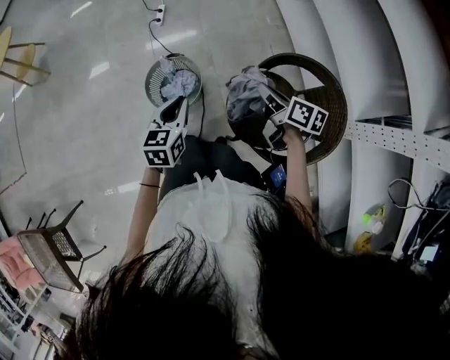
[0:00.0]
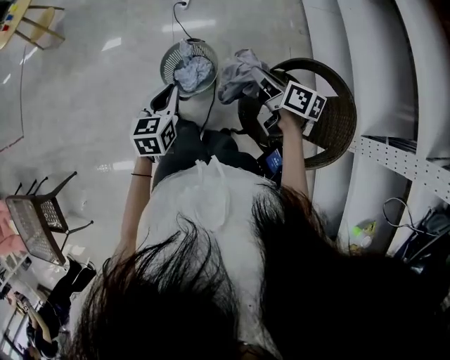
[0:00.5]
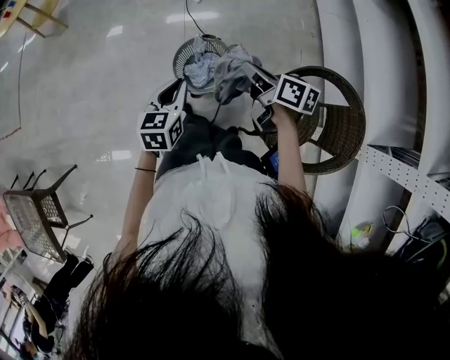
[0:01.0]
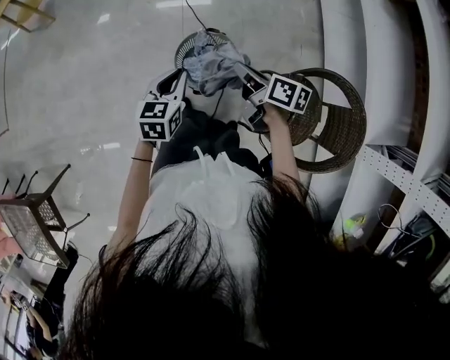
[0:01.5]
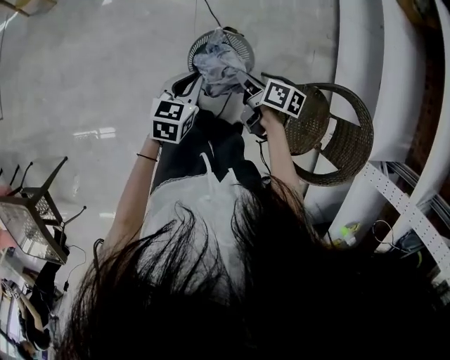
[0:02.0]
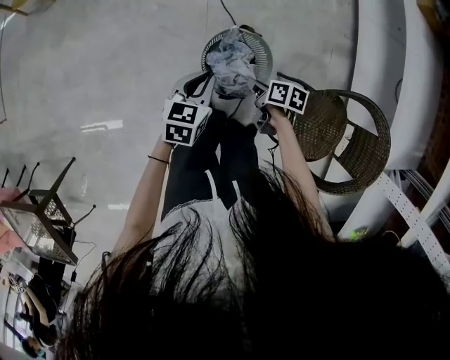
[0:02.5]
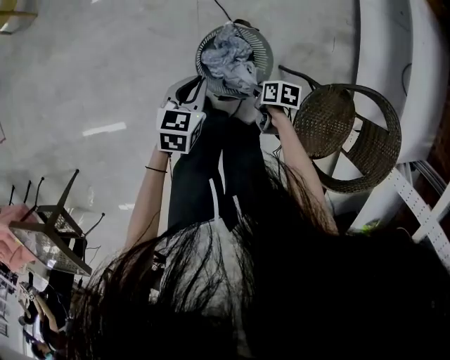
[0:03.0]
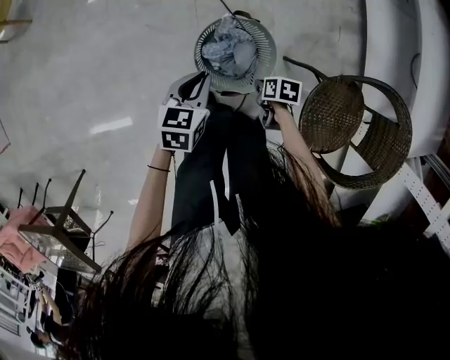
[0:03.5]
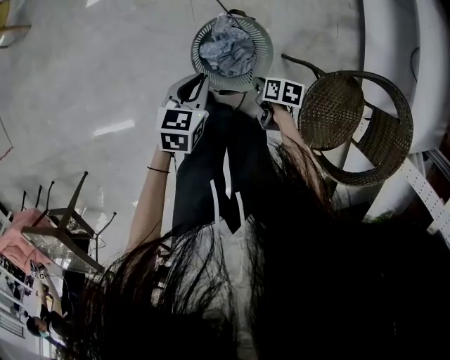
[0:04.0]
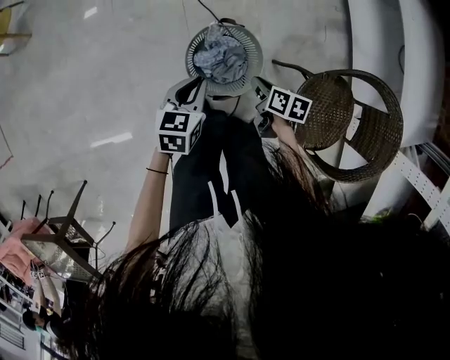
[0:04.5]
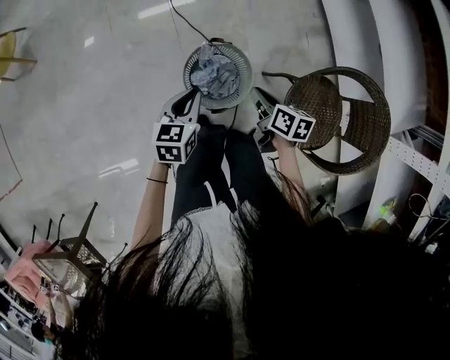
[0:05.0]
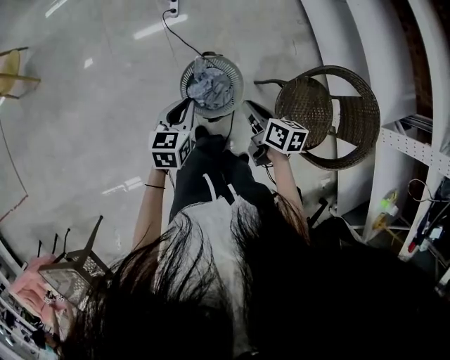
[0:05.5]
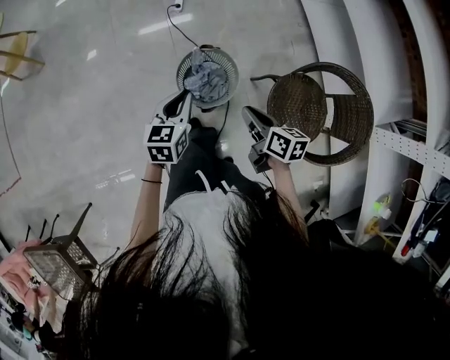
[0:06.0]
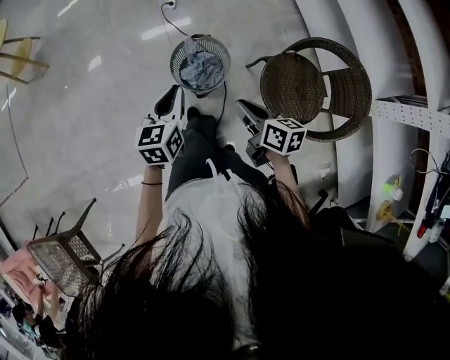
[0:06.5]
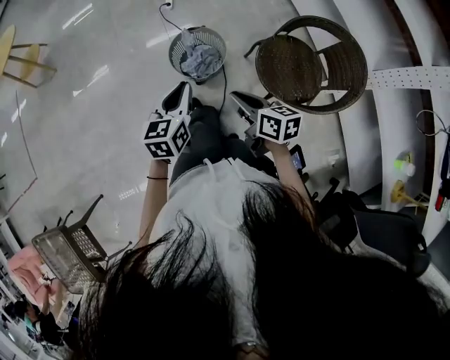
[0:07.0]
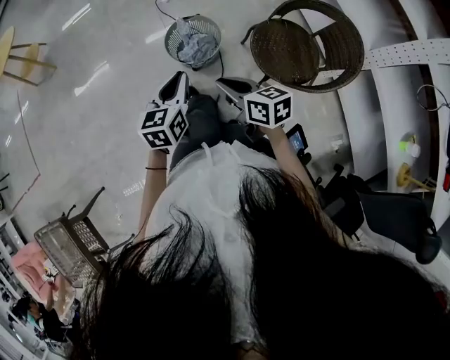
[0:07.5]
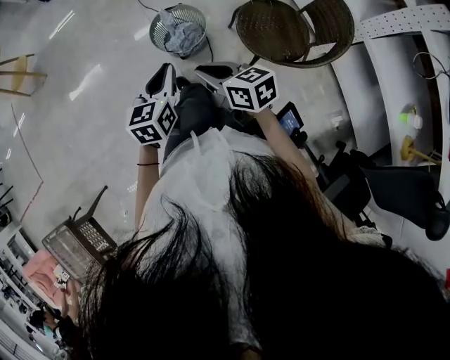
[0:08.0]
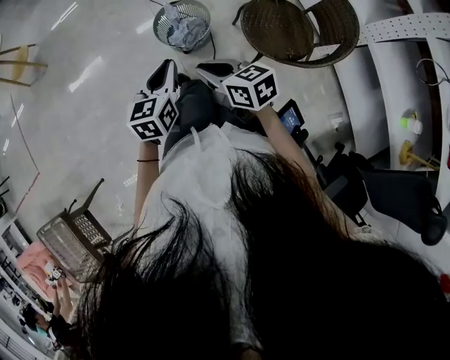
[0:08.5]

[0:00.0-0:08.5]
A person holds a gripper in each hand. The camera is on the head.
0:00.0 to 0:02.0: Both grippers travel together to the left, forward and downward, approximately 35 cm. The right gripper turns by approximately 20 degrees.
0:02.0 to 0:04.0: The left gripper goes approximately 15 cm downward. The right gripper travels downward by about 25 cm, and swivels about 30 degrees.
0:04.0 to 0:06.5: Both grippers move upward and backward, roughly 35 cm. The right gripper angles its fingers upward, by about 40 degrees.
0:06.5 to 0:08.5: The left gripper travels backward by about 20 cm. The right gripper moves backward and to the left, roughly 15 cm, and rotates some 20 degrees.

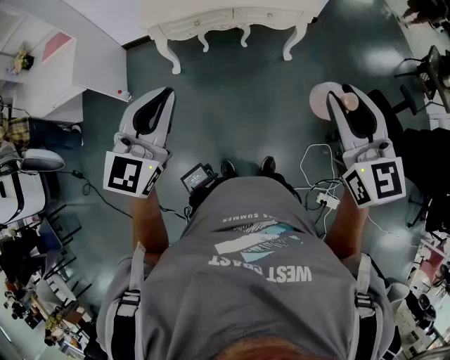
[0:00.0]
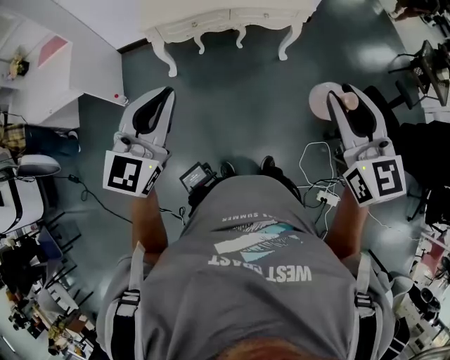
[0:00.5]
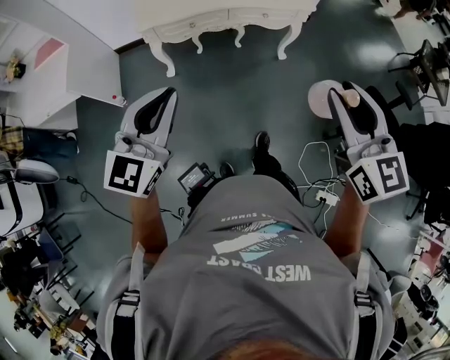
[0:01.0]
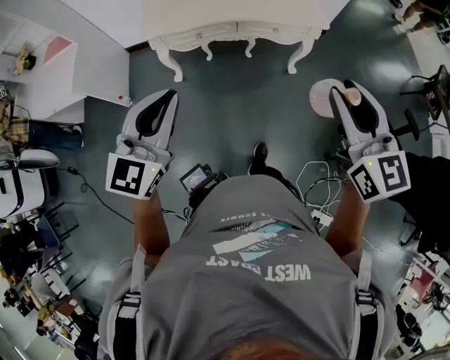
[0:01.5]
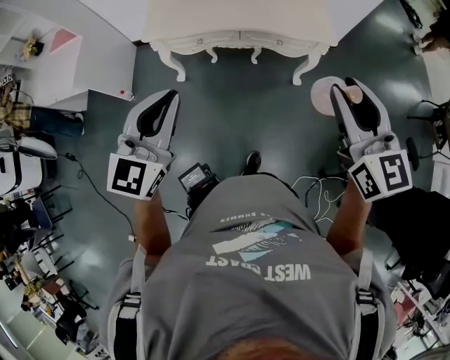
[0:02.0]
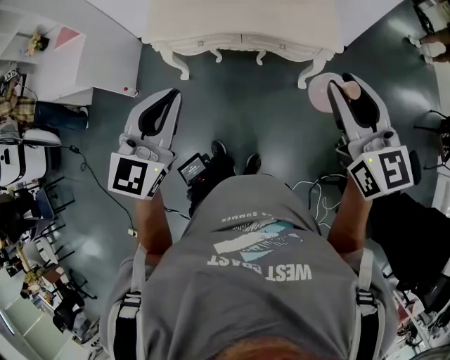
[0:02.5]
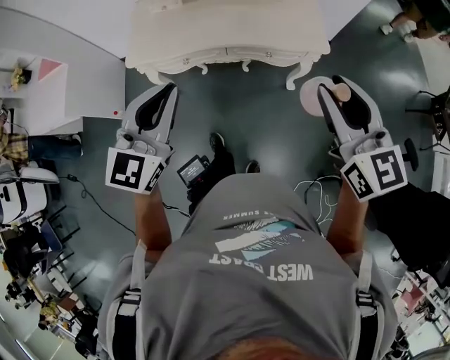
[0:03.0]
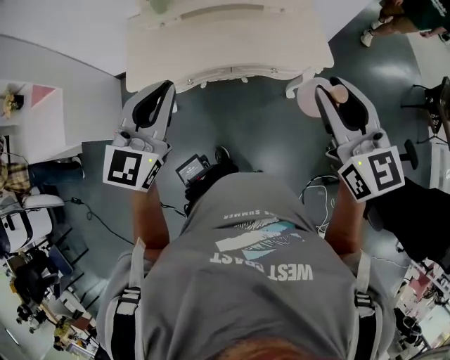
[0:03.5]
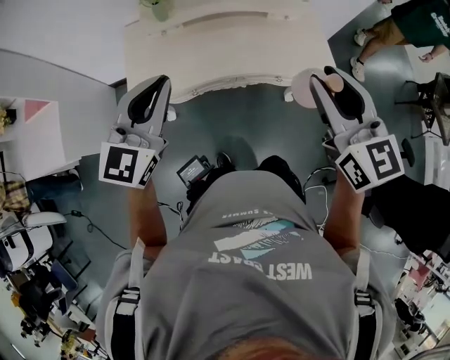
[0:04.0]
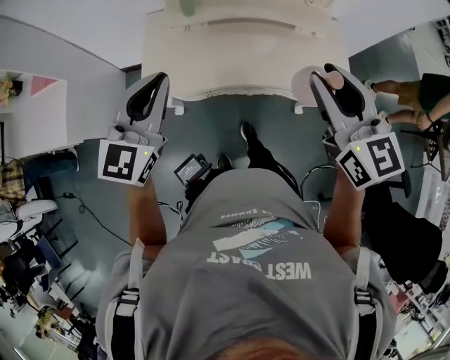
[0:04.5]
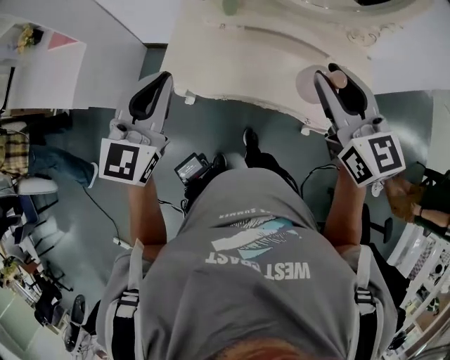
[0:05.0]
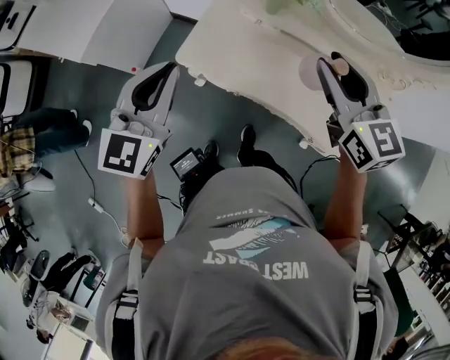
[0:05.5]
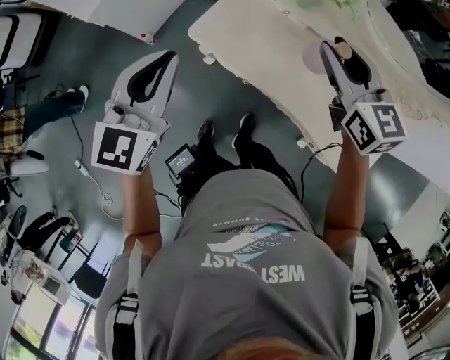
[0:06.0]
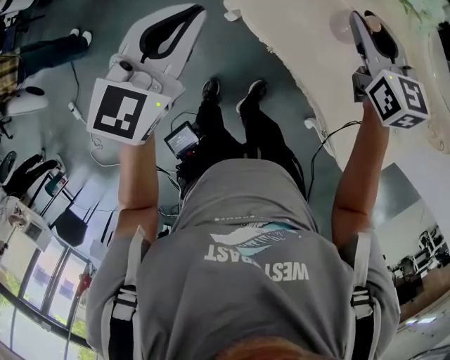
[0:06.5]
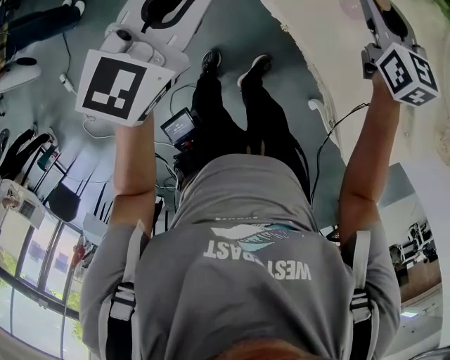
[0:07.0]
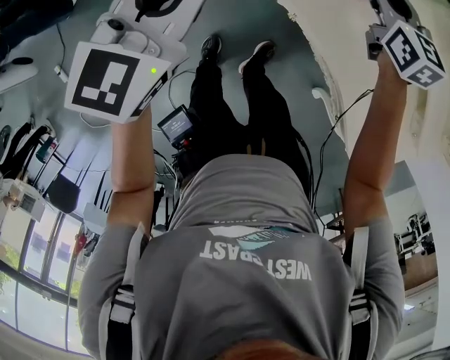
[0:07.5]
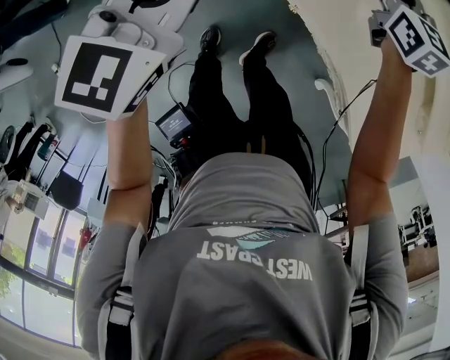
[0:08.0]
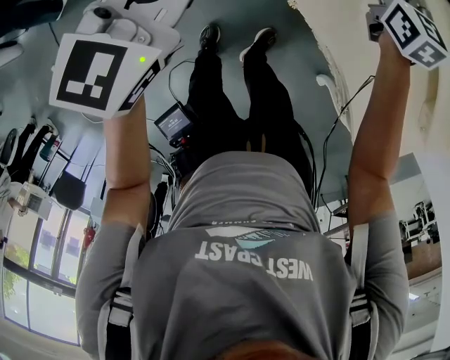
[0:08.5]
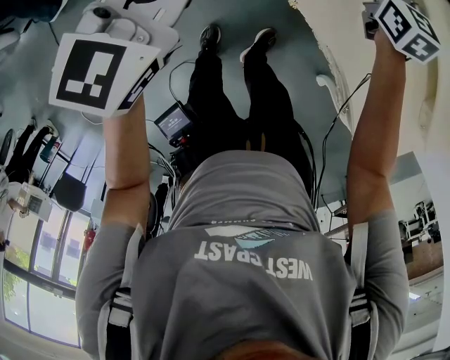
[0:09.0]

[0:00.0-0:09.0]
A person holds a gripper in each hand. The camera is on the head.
0:00.0 to 0:02.0: The left gripper is displaced forward and to the right by about 20 cm; the right gripper travels forward by approximately 25 cm.
0:02.0 to 0:04.5: Both grippers move forward and to the left, roughly 40 cm.
0:04.5 to 0:07.0: The right gripper moves roughly 50 cm, and turns by some 50 degrees. Meanwhile the left gripper travels downward by about 20 cm, and rotates roughly 40 degrees.
0:07.0 to 0:09.0: The right gripper heads downward, covering about 10 cm; the left gripper is displaced downward by roughly 5 cm.

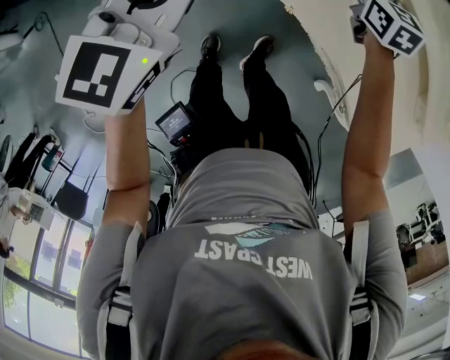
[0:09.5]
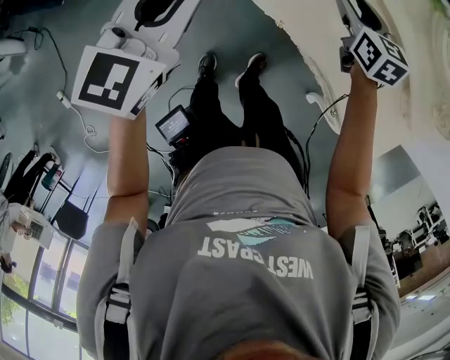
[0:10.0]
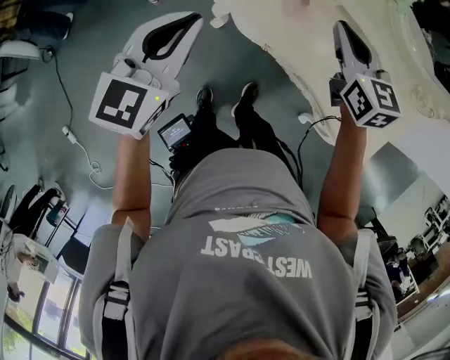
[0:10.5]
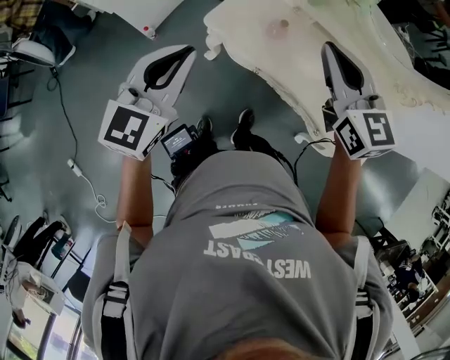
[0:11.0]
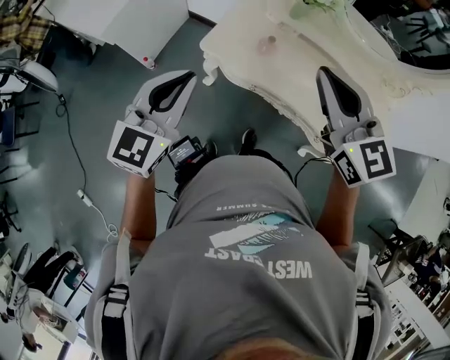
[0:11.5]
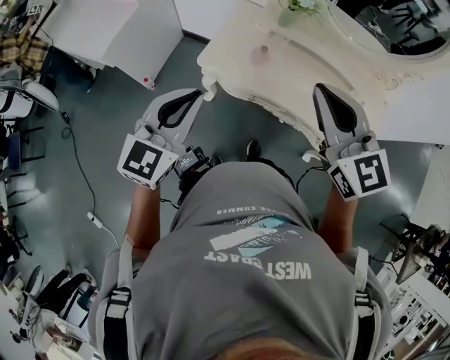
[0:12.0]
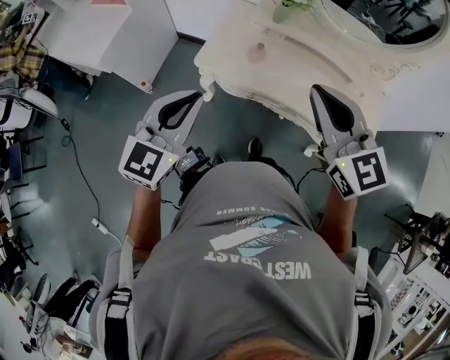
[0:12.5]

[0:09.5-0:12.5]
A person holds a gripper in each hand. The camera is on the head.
0:09.5 to 0:11.0: The left gripper shifts some 20 cm upward and backward. The right gripper moves upward and backward, some 40 cm, rotates some 20 degrees, and closes up.
0:11.0 to 0:12.5: The right gripper heads backward and upward, covering roughly 15 cm. Meanwhile the left gripper moves backward, roughly 5 cm.

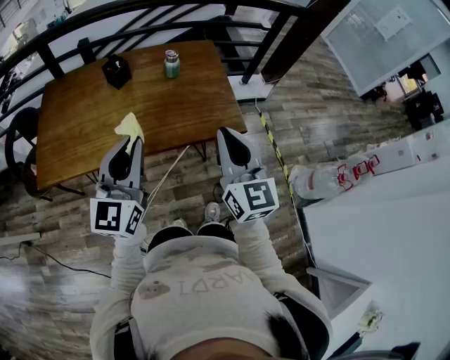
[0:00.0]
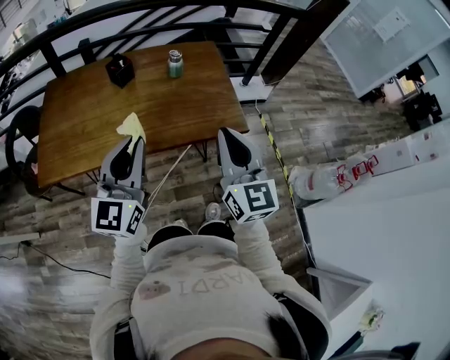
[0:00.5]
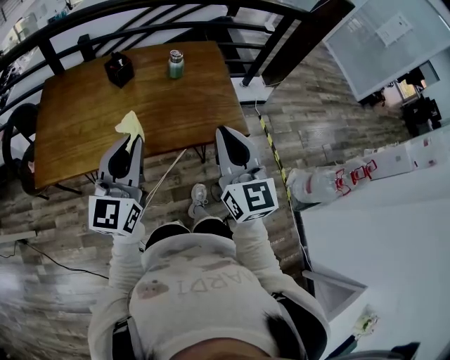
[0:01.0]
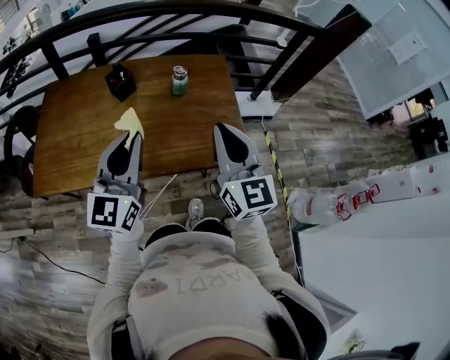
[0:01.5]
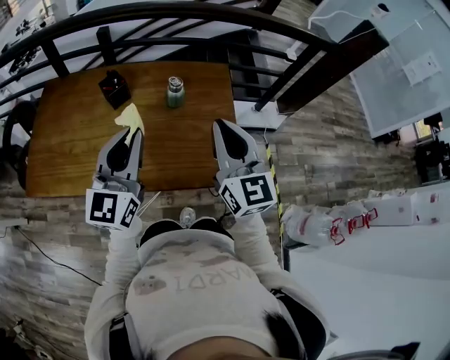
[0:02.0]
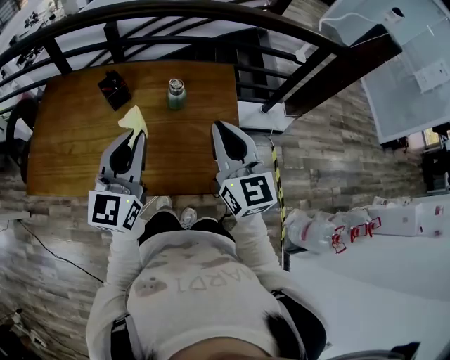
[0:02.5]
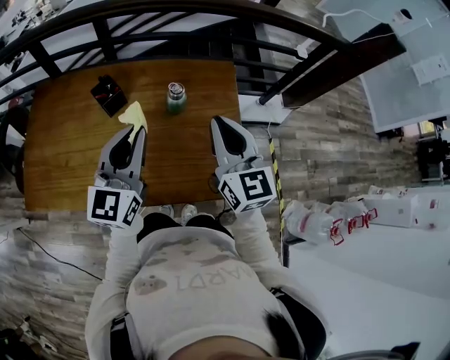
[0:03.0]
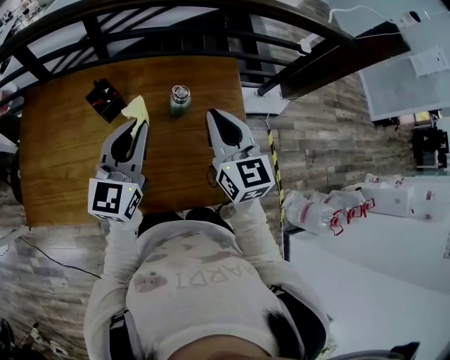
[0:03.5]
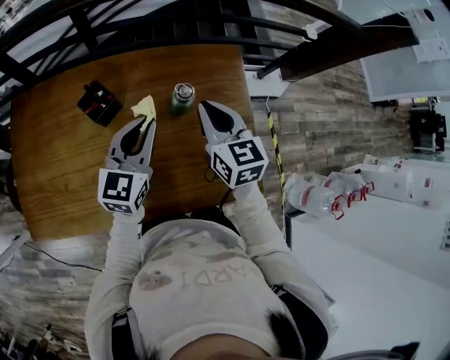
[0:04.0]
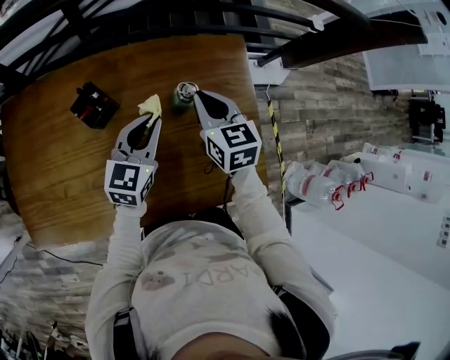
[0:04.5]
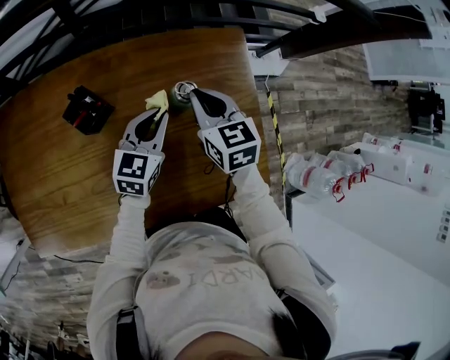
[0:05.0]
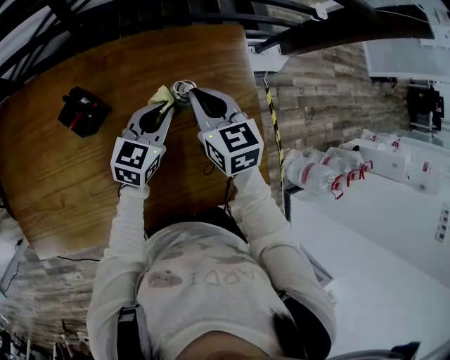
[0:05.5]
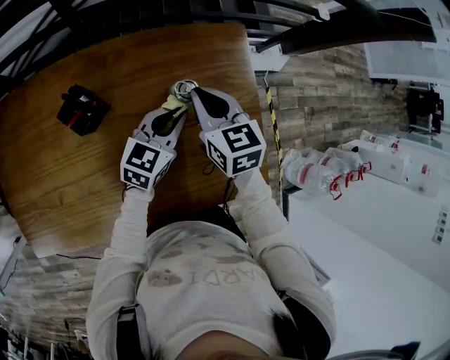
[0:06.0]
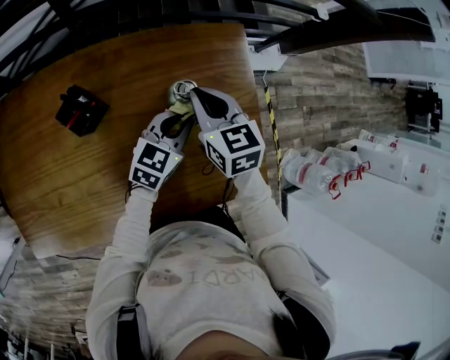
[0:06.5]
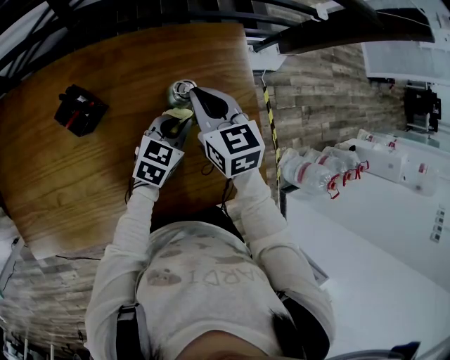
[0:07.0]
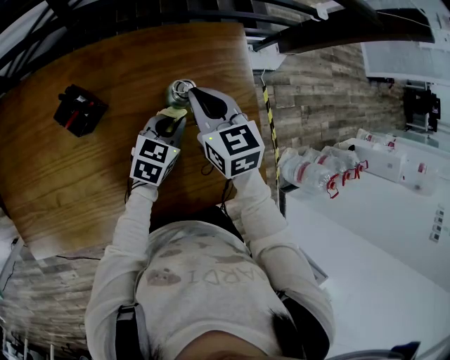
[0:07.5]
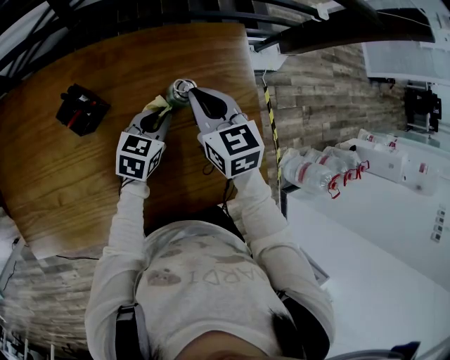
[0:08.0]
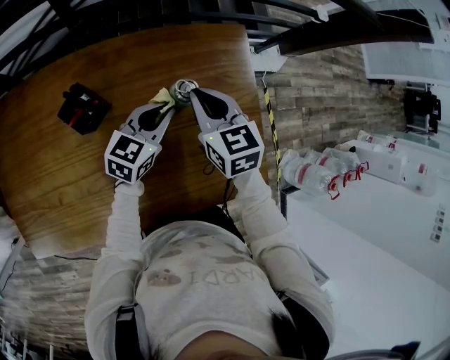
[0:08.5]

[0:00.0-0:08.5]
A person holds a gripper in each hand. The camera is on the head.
0:00.0 to 0:02.0: Both grippers move forward, some 20 cm.
0:02.0 to 0:04.0: Both grippers move forward and downward, about 30 cm. The right gripper turns by roughly 30 degrees, while the left gripper swivels approximately 20 degrees.
0:04.0 to 0:06.5: The right gripper travels downward and forward by approximately 10 cm, while the left gripper travels downward, to the right and forward by roughly 15 cm, and changes its angle by some 30 degrees.
0:06.5 to 0:08.5: The left gripper goes about 5 cm to the left.
